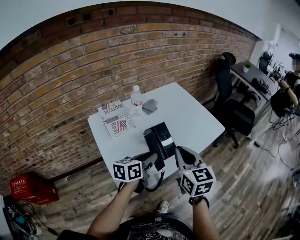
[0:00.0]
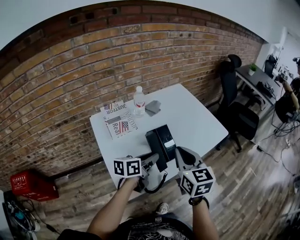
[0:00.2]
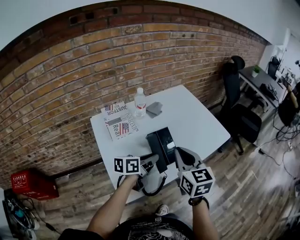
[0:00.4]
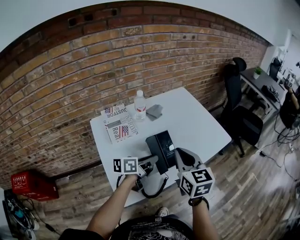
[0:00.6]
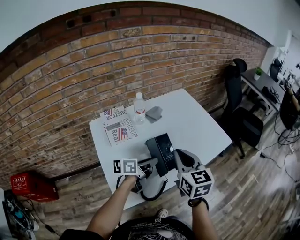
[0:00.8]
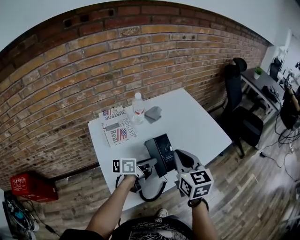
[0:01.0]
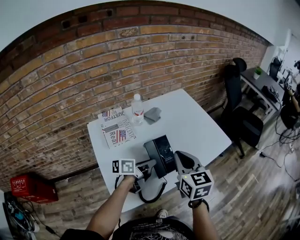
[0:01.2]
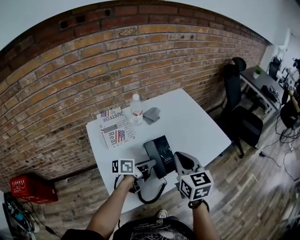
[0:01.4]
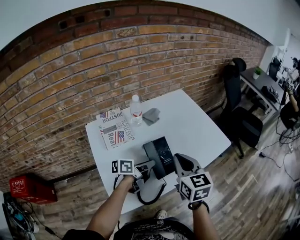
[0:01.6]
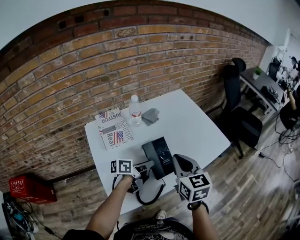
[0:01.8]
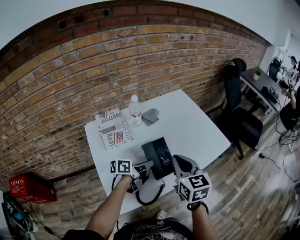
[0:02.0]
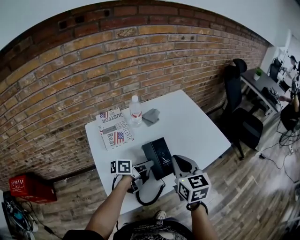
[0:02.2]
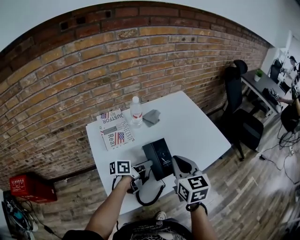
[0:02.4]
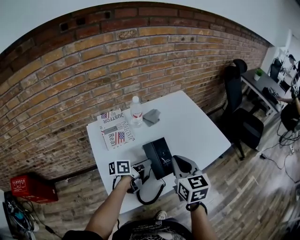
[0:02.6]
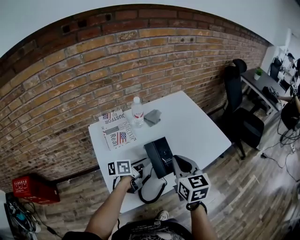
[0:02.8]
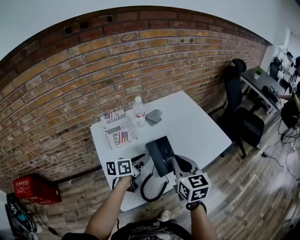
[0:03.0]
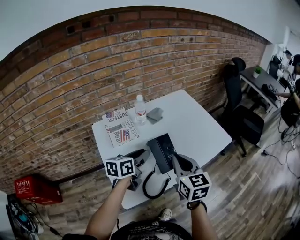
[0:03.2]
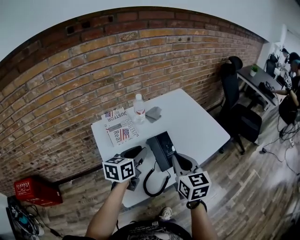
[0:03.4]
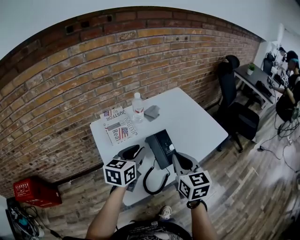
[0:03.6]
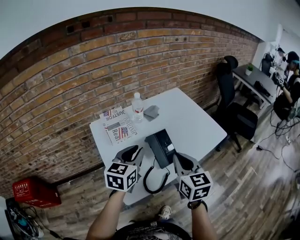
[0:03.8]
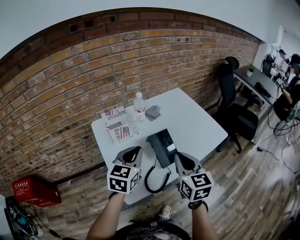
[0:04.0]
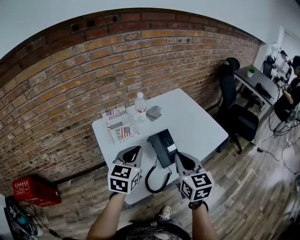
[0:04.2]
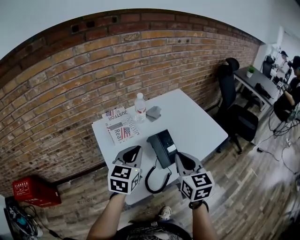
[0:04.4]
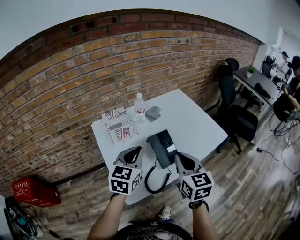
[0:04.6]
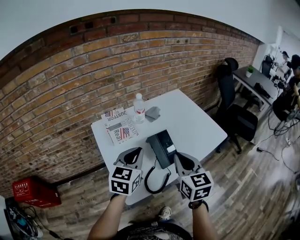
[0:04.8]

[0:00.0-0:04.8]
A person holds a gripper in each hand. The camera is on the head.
0:00.0 to 0:01.6: The left gripper moves forward and downward, approximately 10 cm, and swivels roughly 30 degrees, while the right gripper moves forward, approximately 10 cm.
0:01.6 to 0:03.2: The left gripper heads upward and to the left, covering some 10 cm, and turns by about 30 degrees.
0:03.2 to 0:04.8: The left gripper moves upward and backward, roughly 10 cm, and rotates some 30 degrees.

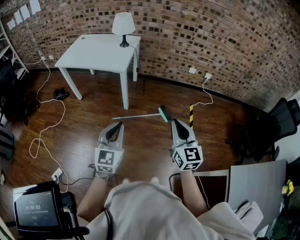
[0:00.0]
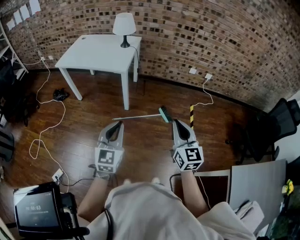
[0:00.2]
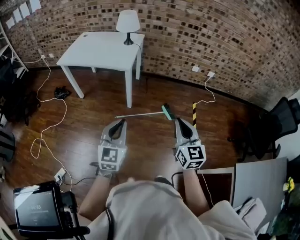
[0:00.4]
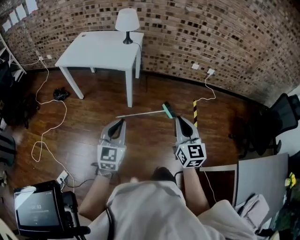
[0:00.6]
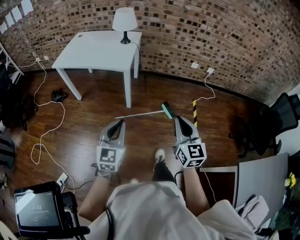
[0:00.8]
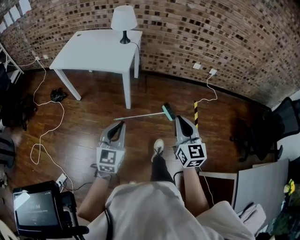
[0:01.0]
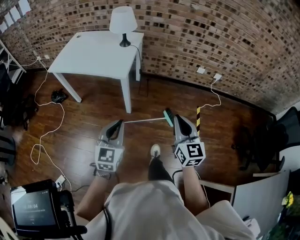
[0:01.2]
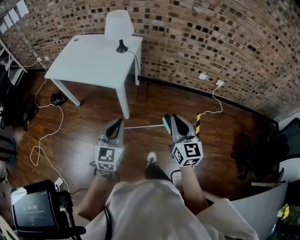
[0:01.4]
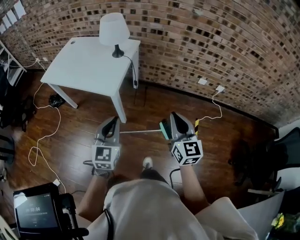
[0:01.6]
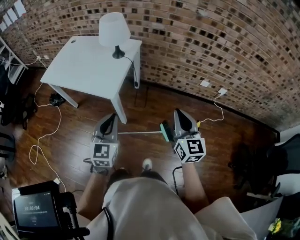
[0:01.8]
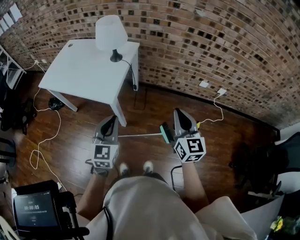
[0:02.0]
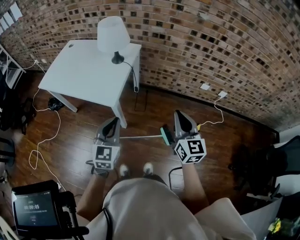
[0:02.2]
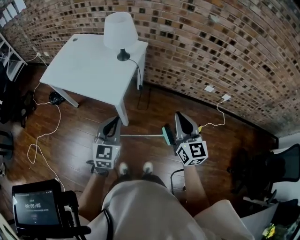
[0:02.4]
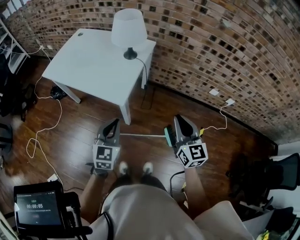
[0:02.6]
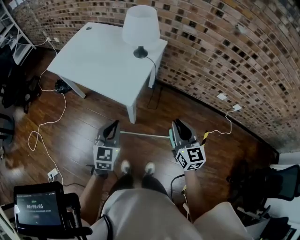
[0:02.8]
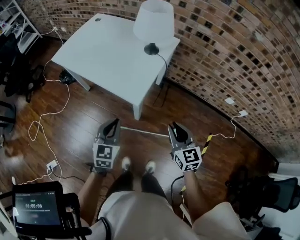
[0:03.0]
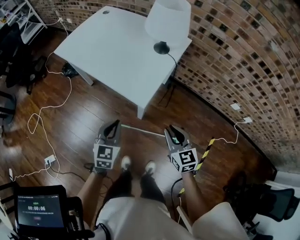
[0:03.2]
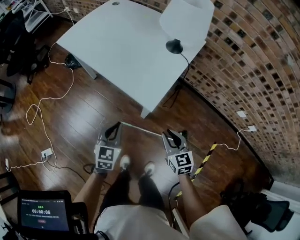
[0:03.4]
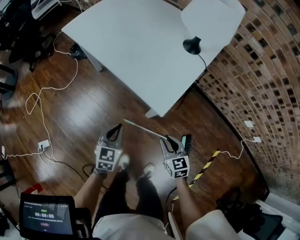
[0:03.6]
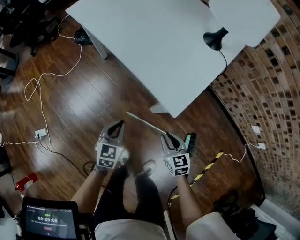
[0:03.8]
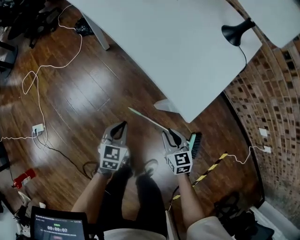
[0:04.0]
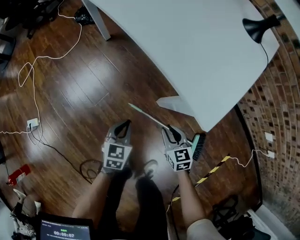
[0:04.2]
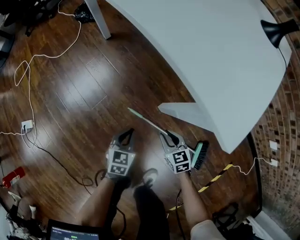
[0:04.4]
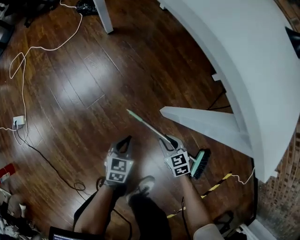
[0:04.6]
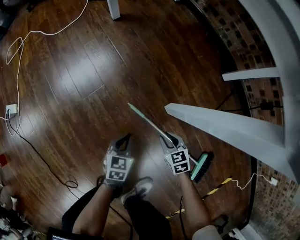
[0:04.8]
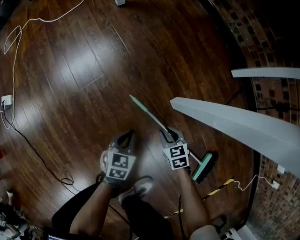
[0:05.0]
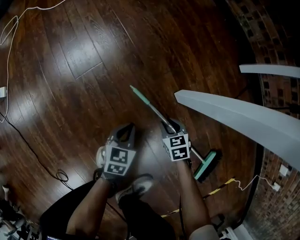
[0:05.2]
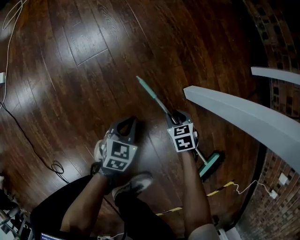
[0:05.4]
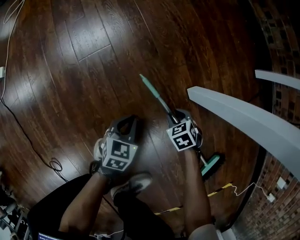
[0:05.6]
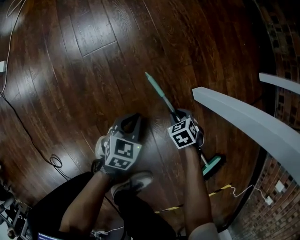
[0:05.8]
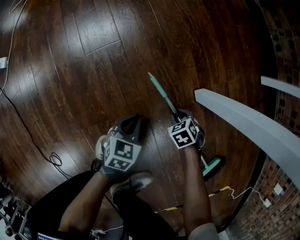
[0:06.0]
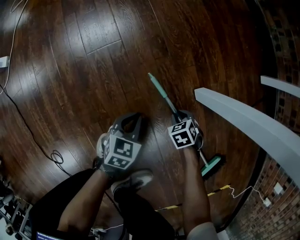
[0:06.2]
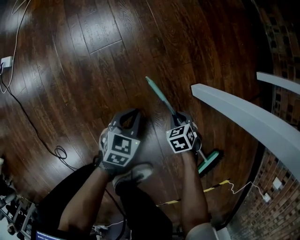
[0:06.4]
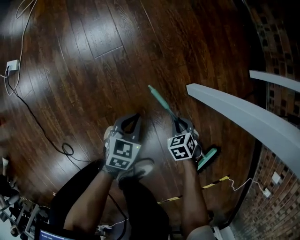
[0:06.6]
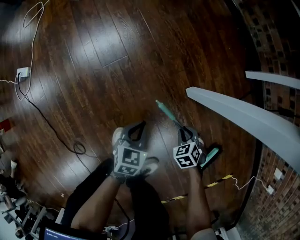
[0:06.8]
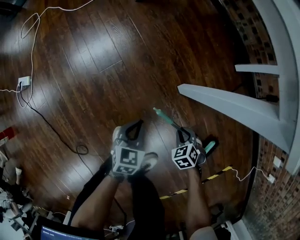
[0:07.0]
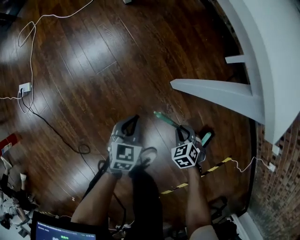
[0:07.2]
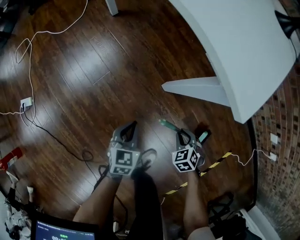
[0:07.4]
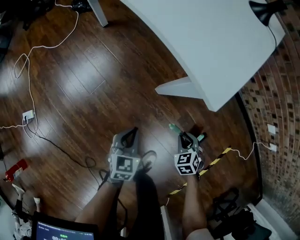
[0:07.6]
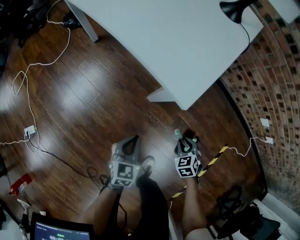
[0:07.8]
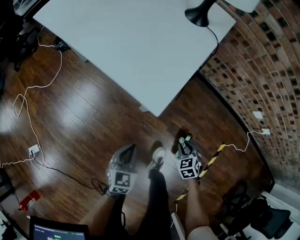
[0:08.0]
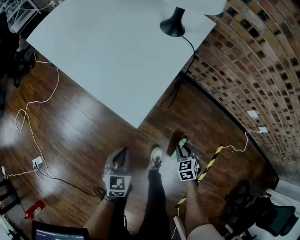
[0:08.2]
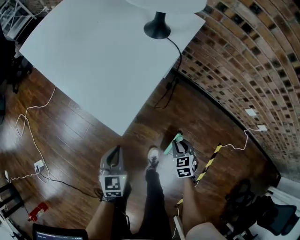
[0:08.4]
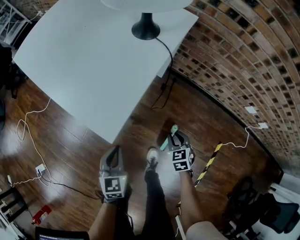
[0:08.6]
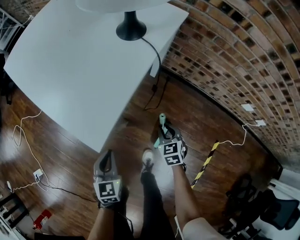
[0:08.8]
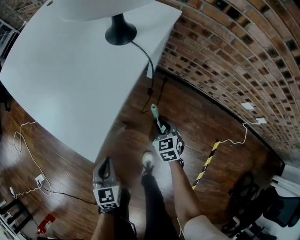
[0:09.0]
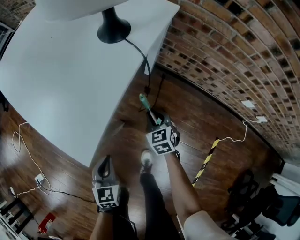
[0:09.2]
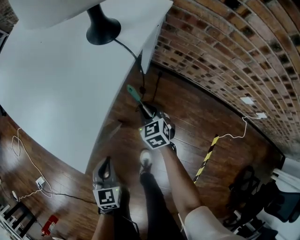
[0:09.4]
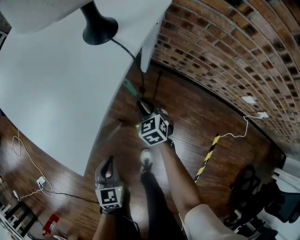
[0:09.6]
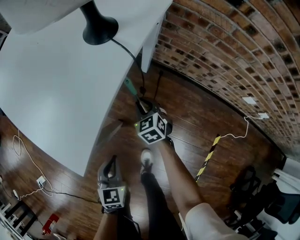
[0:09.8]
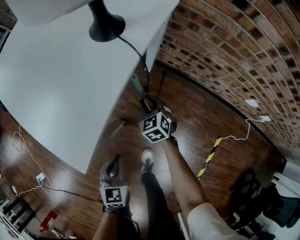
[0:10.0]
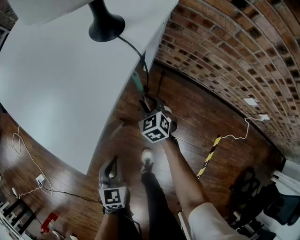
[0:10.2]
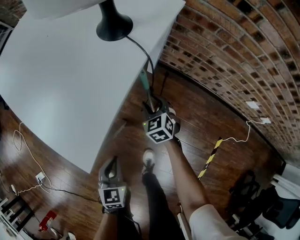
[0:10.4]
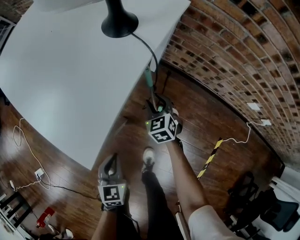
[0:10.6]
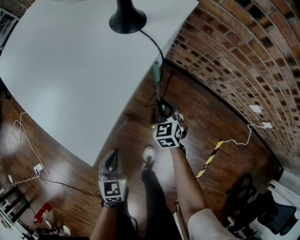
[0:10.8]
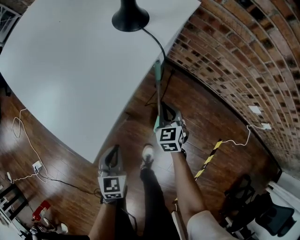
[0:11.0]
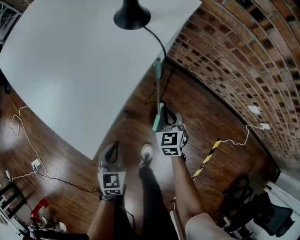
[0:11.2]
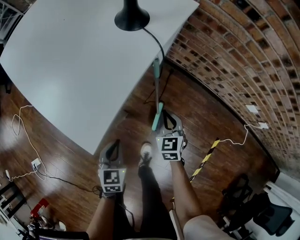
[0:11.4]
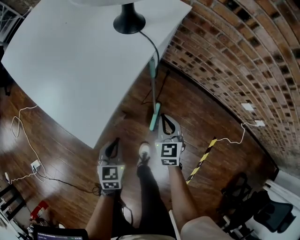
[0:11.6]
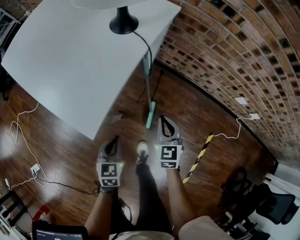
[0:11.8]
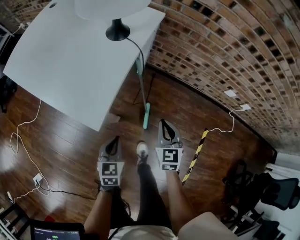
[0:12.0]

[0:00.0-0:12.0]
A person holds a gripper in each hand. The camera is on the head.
0:00.0 to 0:01.6: Both grippers travel together forward, roughly 35 cm.
0:01.6 to 0:03.0: The right gripper travels forward, downward and to the left by about 25 cm, and turns by approximately 20 degrees, while the left gripper moves forward, to the left and downward, about 20 cm.
0:03.0 to 0:04.4: Both grippers travel together downward, some 50 cm. The left gripper rotates some 30 degrees; the right gripper turns by some 40 degrees.
0:04.4 to 0:06.0: Both grippers travel together downward, about 30 cm. The right gripper tilts its fingers about 40 degrees downward.
0:06.0 to 0:07.6: The grippers both shift upward by about 40 cm. The right gripper turns by some 30 degrees.
0:07.6 to 0:09.0: The right gripper is displaced forward, upward and to the right by some 25 cm, and rotates some 30 degrees, while the left gripper is displaced upward, forward and to the right by some 20 cm.
0:09.0 to 0:10.4: The right gripper is displaced forward by approximately 10 cm, and opens its fingers.
0:10.4 to 0:12.0: The right gripper heads backward and upward, covering approximately 25 cm, changes its angle by about 30 degrees, and closes up. The left gripper is displaced upward by some 5 cm.

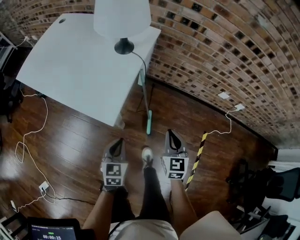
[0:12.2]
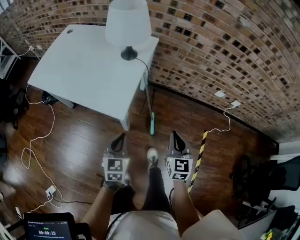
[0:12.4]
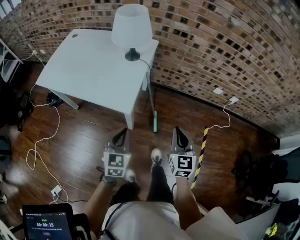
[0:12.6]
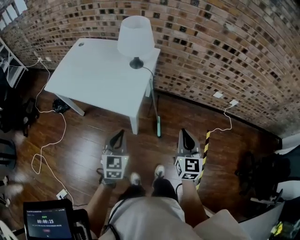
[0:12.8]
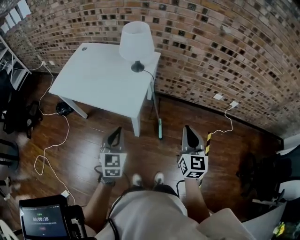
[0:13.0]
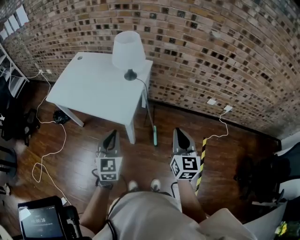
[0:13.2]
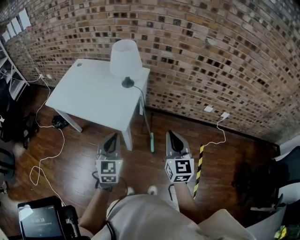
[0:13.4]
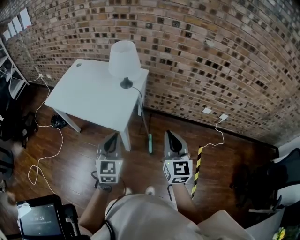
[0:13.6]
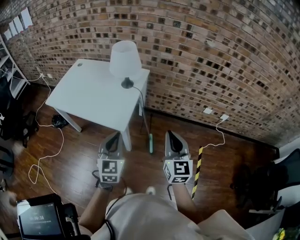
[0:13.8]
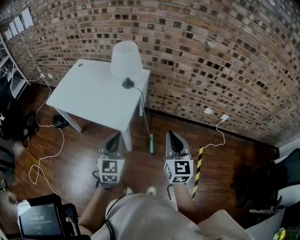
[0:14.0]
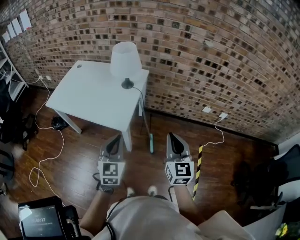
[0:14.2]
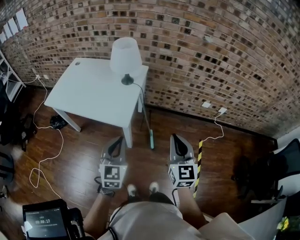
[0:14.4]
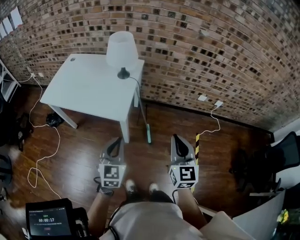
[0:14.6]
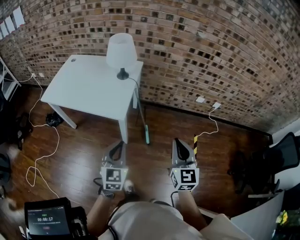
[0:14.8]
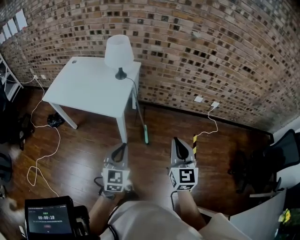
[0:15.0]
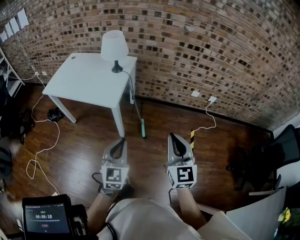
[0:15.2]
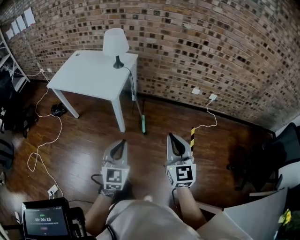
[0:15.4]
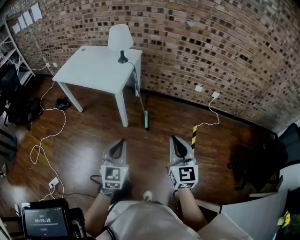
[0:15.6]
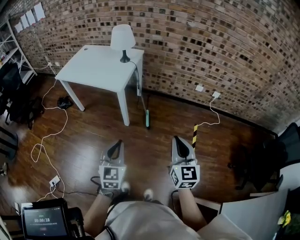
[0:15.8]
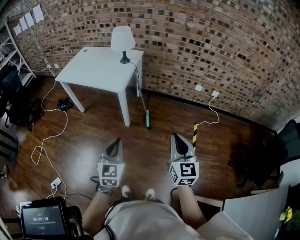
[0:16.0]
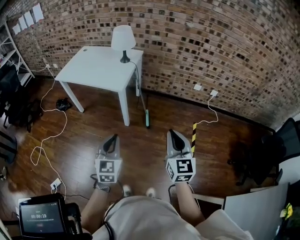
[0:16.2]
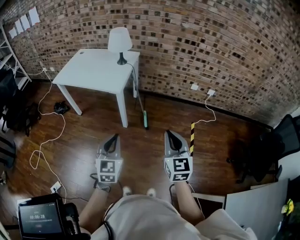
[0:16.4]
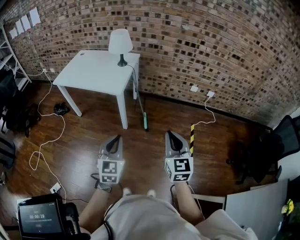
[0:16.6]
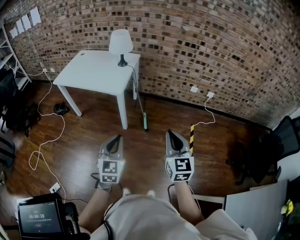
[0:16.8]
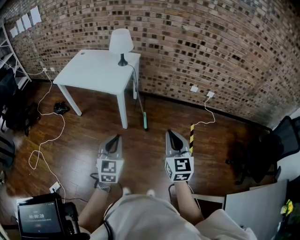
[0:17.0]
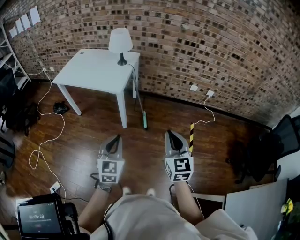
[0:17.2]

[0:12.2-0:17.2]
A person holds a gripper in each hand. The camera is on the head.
0:12.2 to 0:13.8: The two grippers go approximately 30 cm upward. The left gripper rotates about 30 degrees, while the right gripper turns by approximately 20 degrees.
0:13.8 to 0:15.6: The grippers both shift backward by approximately 30 cm.
0:15.6 to 0:17.2: Both grippers move to the left, some 5 cm.

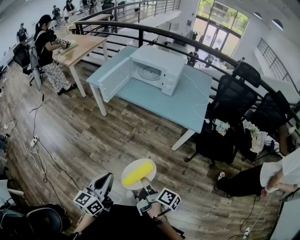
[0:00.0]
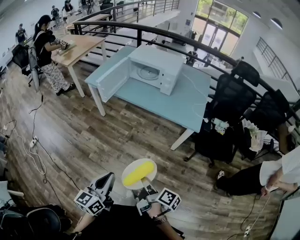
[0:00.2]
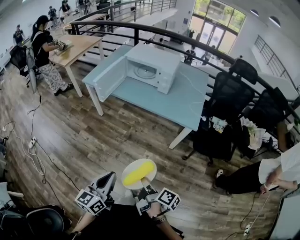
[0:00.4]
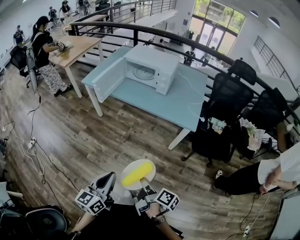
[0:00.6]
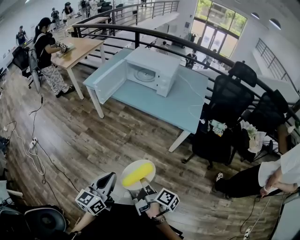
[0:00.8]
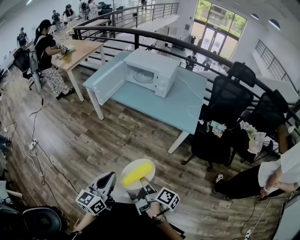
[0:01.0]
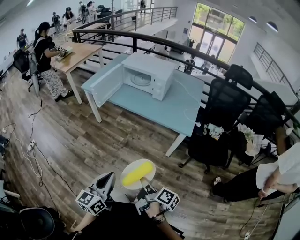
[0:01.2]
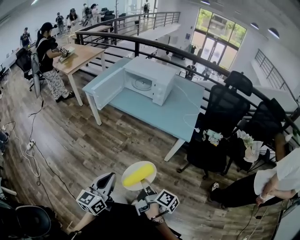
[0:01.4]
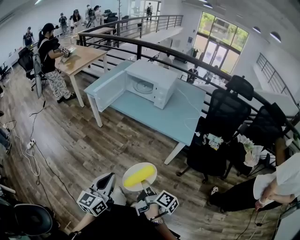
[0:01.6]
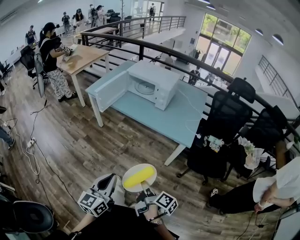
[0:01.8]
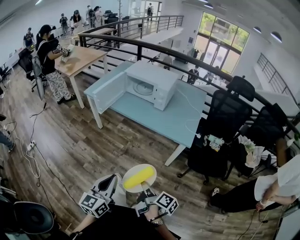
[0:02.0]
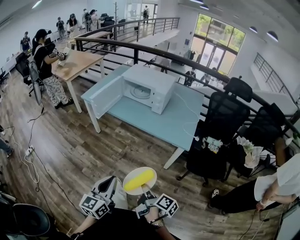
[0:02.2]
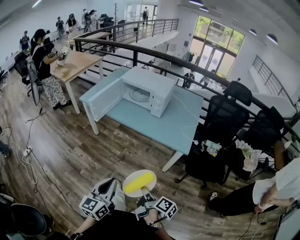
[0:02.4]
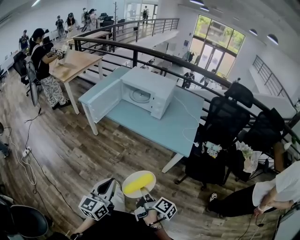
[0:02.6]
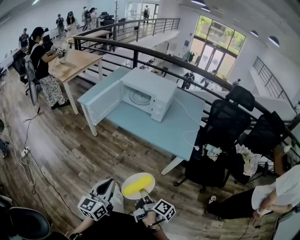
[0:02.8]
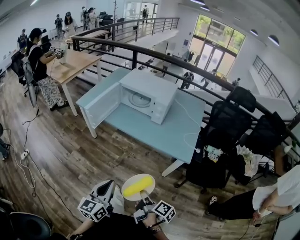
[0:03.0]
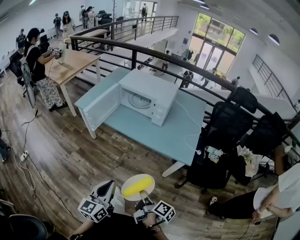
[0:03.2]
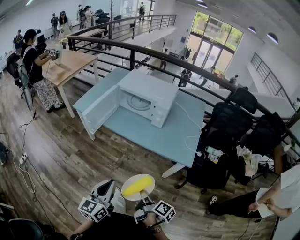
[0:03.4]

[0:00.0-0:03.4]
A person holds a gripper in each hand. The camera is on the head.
0:00.0 to 0:01.6: The left gripper changes place by some 10 cm.
0:01.6 to 0:03.4: The left gripper changes place by about 20 cm.
